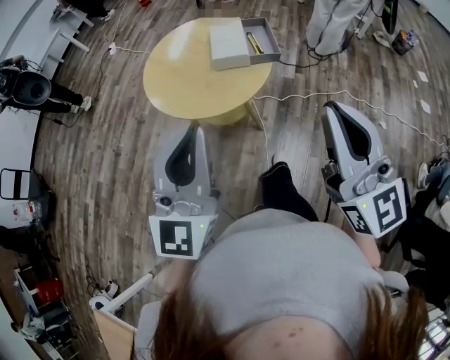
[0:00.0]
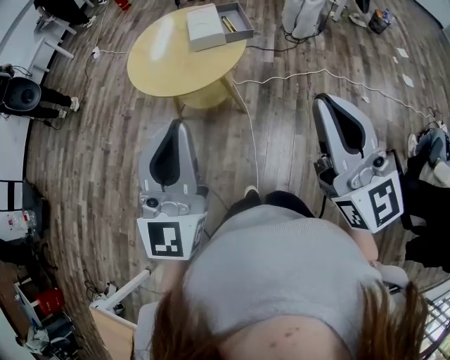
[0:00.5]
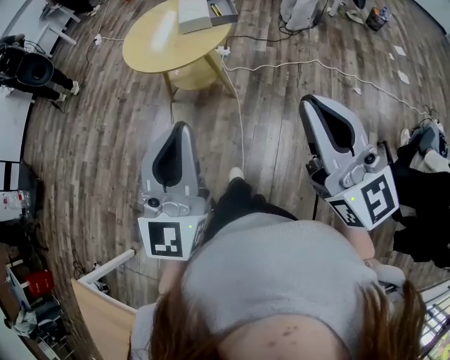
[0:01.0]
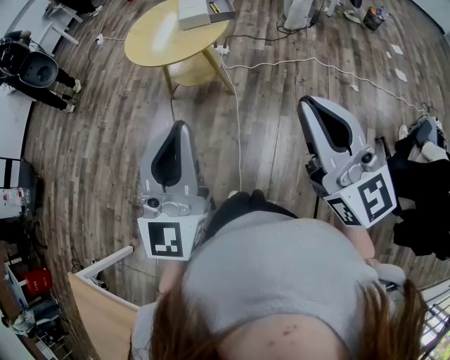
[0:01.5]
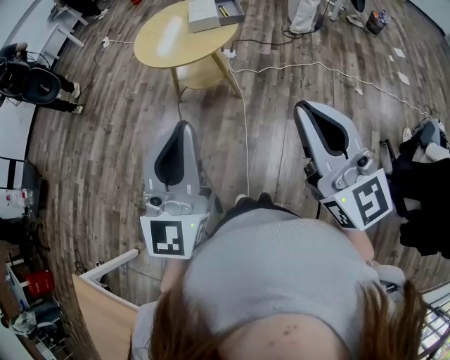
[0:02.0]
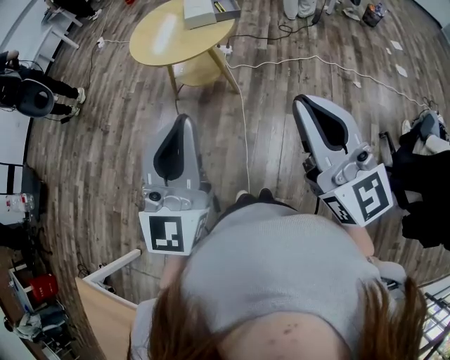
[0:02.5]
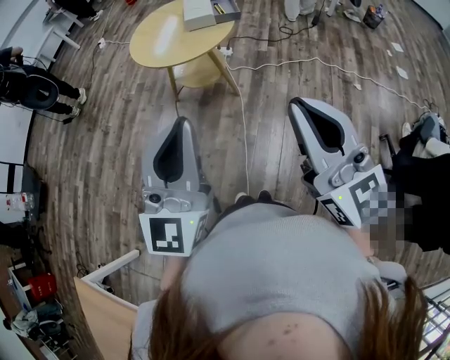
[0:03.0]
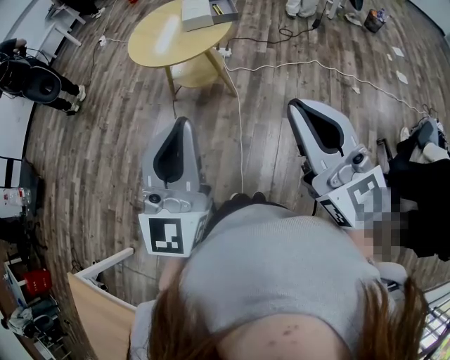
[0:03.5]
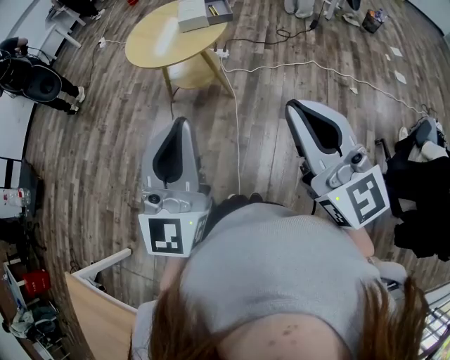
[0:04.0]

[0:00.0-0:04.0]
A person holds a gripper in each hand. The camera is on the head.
0:00.0 to 0:02.0: The two grippers go about 30 cm backward.
0:02.0 to 0:04.0: The grippers stay close to where they were, moving slightly.

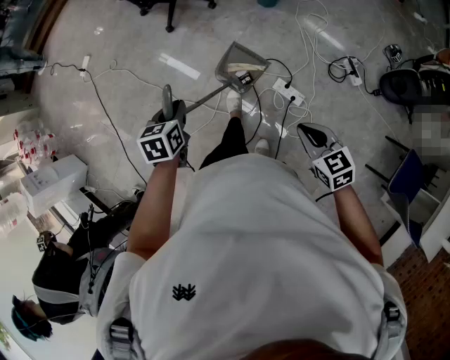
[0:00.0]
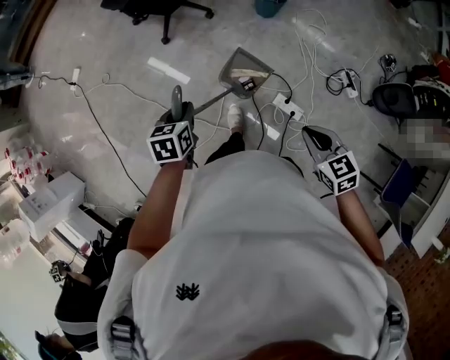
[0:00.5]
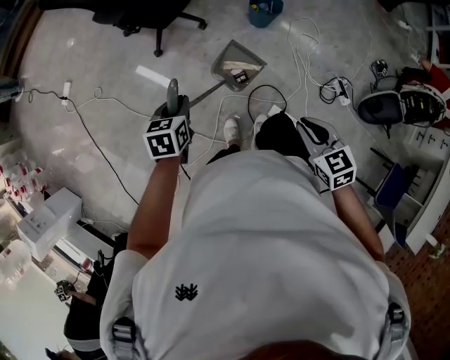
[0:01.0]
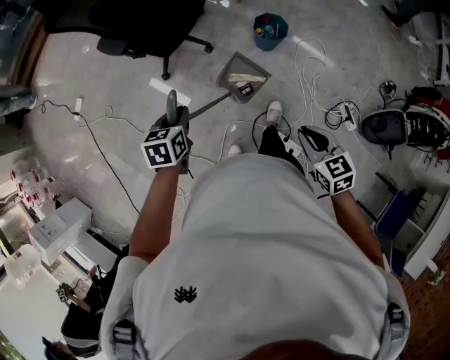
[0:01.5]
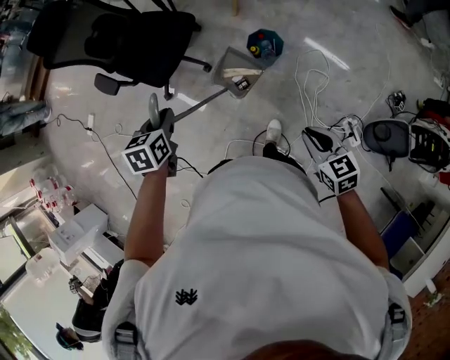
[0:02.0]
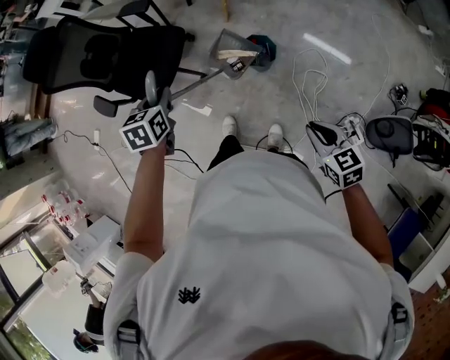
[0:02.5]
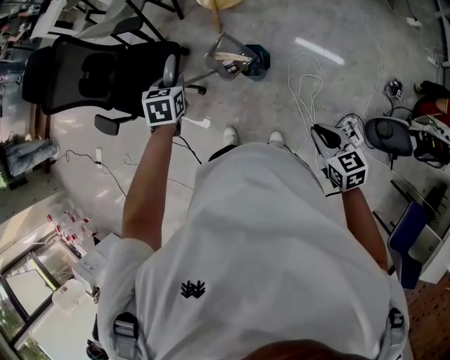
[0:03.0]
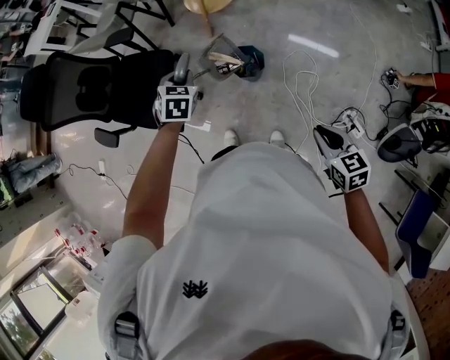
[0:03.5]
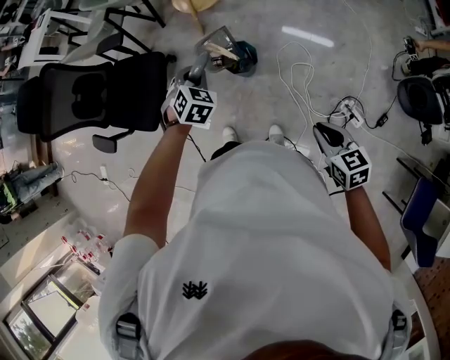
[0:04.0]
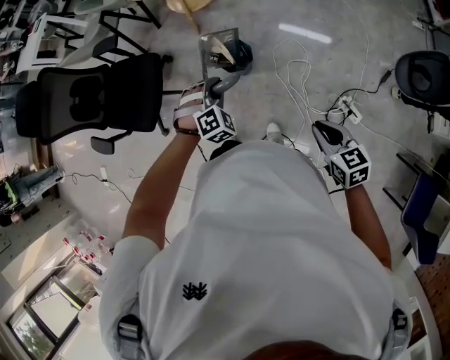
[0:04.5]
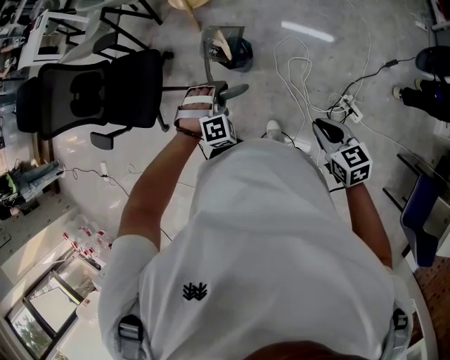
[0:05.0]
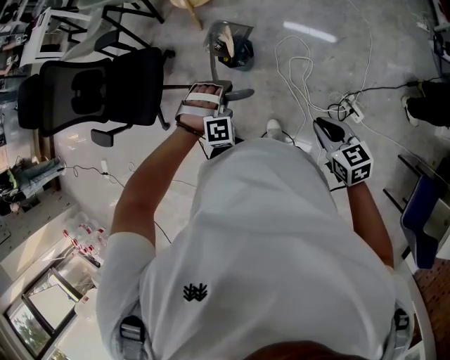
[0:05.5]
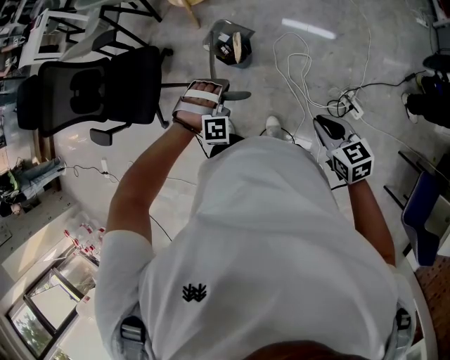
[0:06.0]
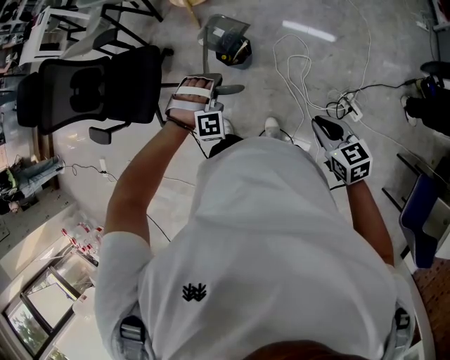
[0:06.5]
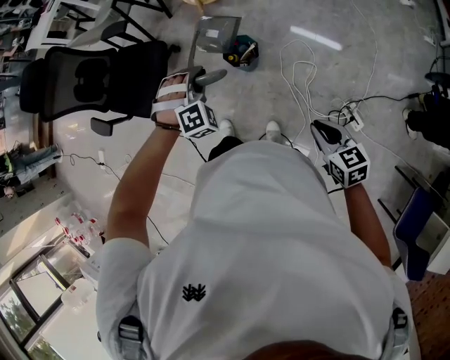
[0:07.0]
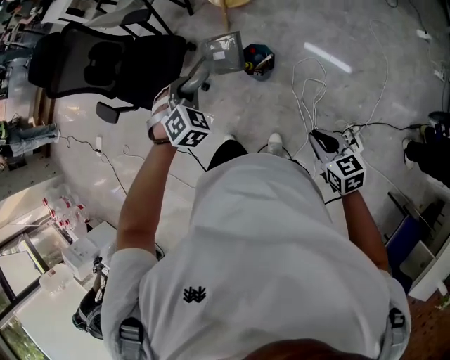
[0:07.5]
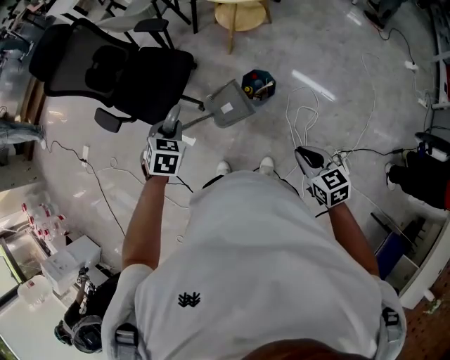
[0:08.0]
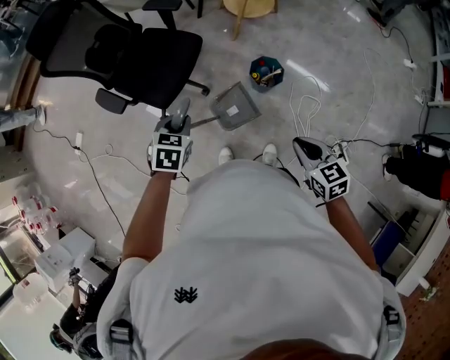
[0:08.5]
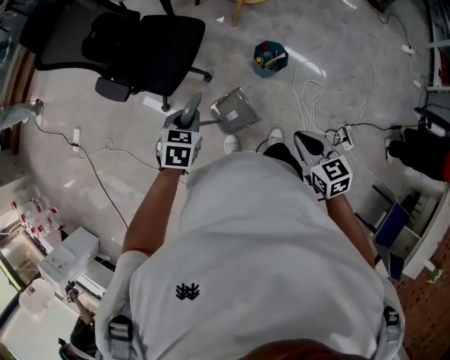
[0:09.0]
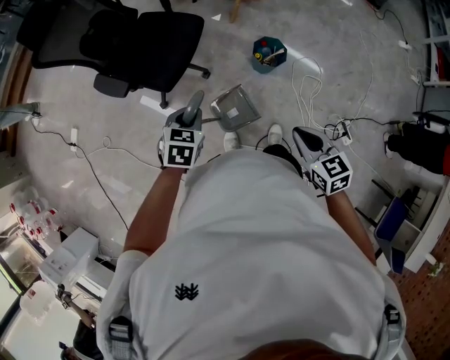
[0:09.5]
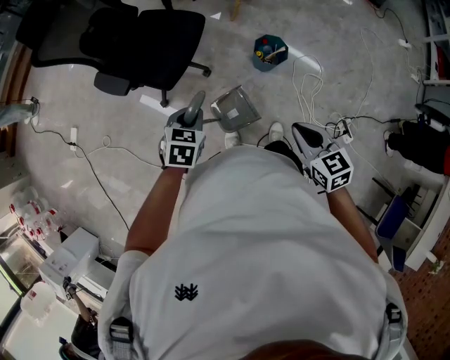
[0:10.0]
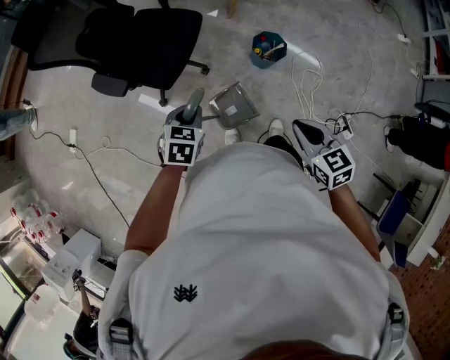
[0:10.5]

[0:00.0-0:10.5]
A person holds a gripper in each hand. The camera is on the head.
0:00.0 to 0:02.0: The two grippers travel together, forward, roughly 50 cm.
0:02.0 to 0:04.0: The right gripper moves to the right, roughly 10 cm, and swivels about 20 degrees; the left gripper goes some 35 cm to the right and forward, and twists roughly 60 degrees clockwise, seen from behind.
0:04.0 to 0:06.5: The left gripper travels backward and to the right by roughly 15 cm, and rolls clockwise, seen from behind, by about 60 degrees.
0:06.5 to 0:08.5: The left gripper shifts about 35 cm to the left, and twists approximately 100 degrees counterclockwise, seen from behind. Meanwhile the right gripper heads to the left and forward, covering about 25 cm.
0:08.5 to 0:10.5: The right gripper travels to the left by some 10 cm; the left gripper ends up about 10 cm from where it was.

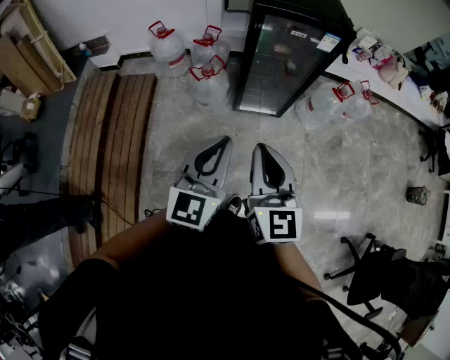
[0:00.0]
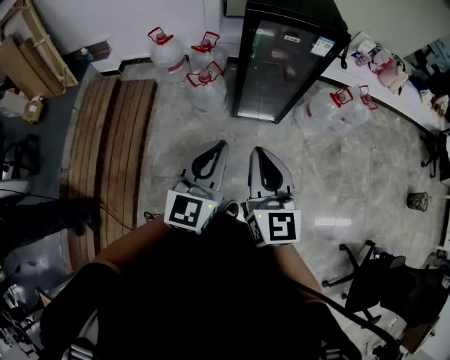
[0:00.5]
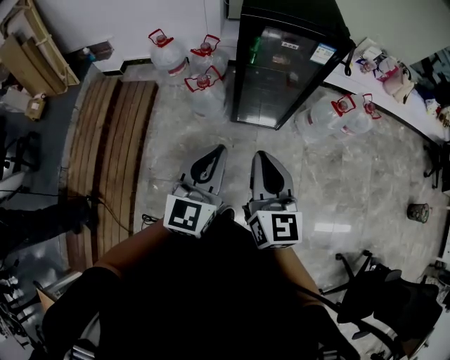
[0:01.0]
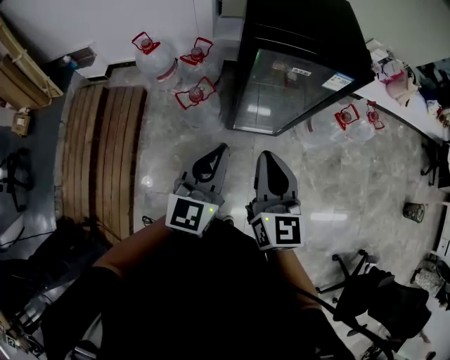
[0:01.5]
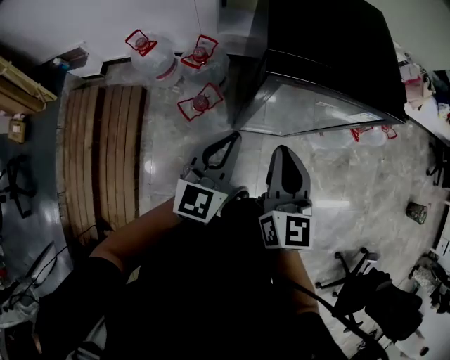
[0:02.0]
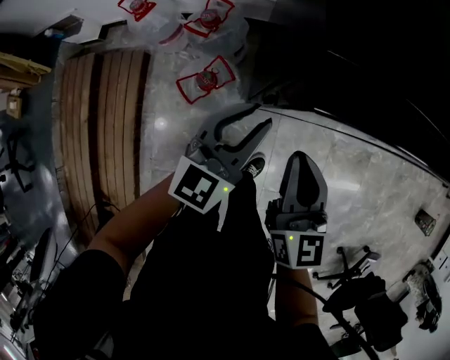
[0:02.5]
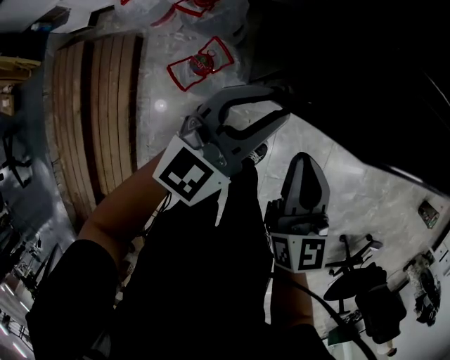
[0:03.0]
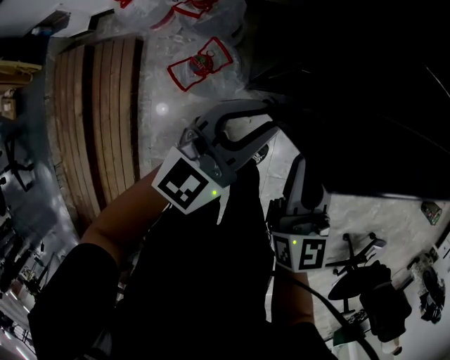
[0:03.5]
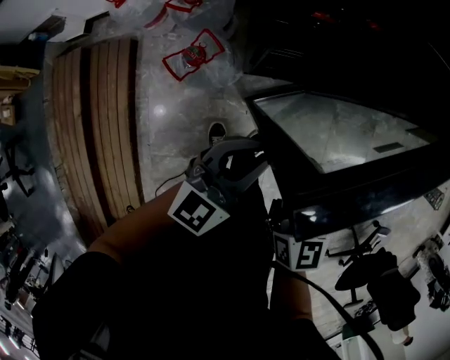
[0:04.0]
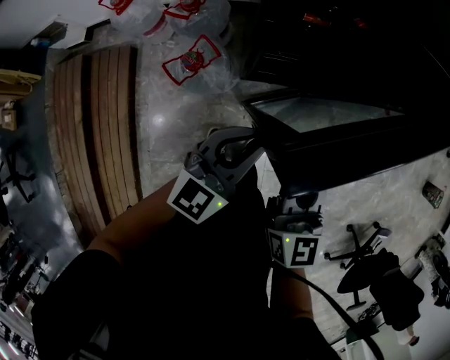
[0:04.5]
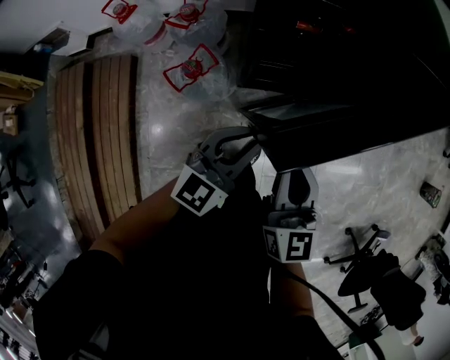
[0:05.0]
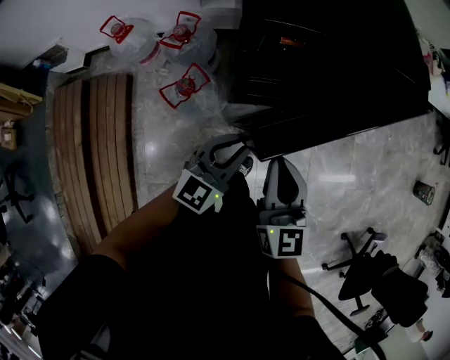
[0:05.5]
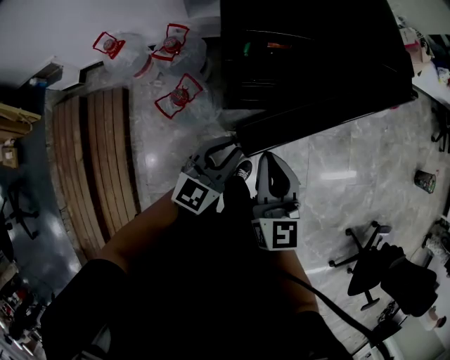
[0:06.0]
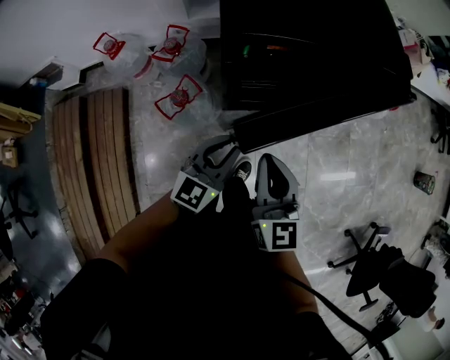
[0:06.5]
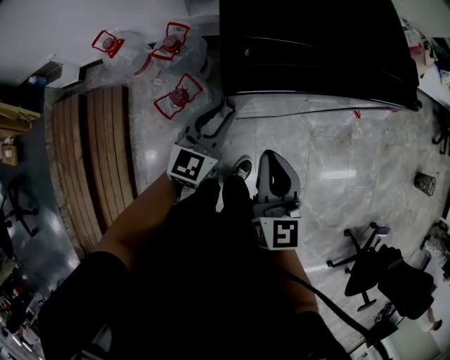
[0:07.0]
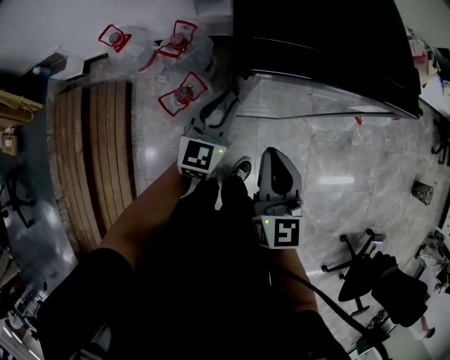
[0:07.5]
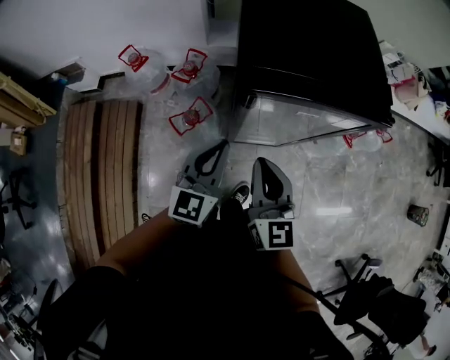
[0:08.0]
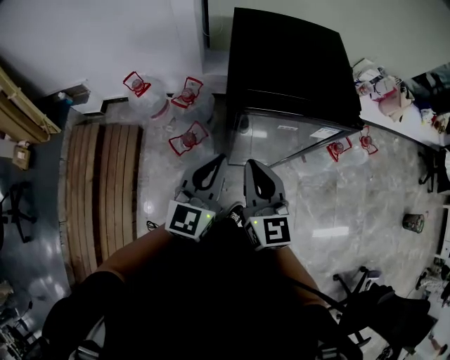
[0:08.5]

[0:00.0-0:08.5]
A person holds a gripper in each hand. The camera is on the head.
0:00.0 to 0:02.0: Both grippers travel together forward, some 40 cm.
0:02.0 to 0:04.0: The two grippers go roughly 15 cm downward and to the right. The left gripper rotates about 20 degrees.
0:04.0 to 0:06.5: The right gripper heads upward, covering some 5 cm.
0:06.5 to 0:08.5: The left gripper shifts approximately 20 cm upward, and turns by some 20 degrees. The right gripper goes some 10 cm upward.

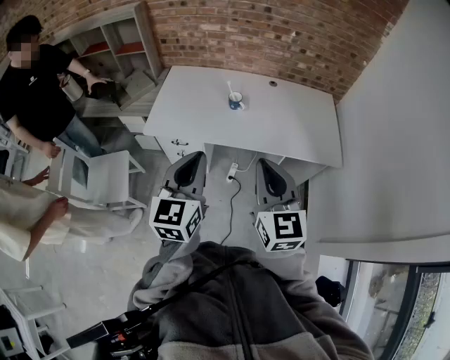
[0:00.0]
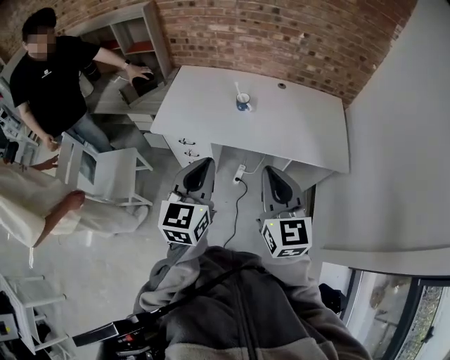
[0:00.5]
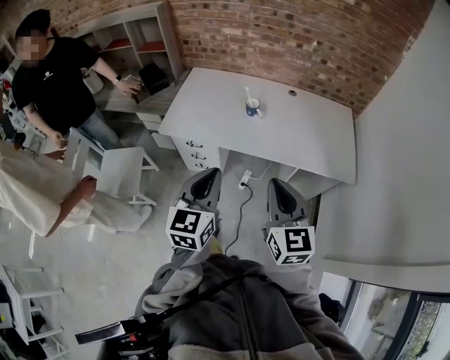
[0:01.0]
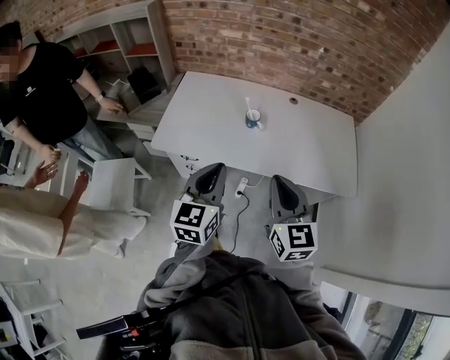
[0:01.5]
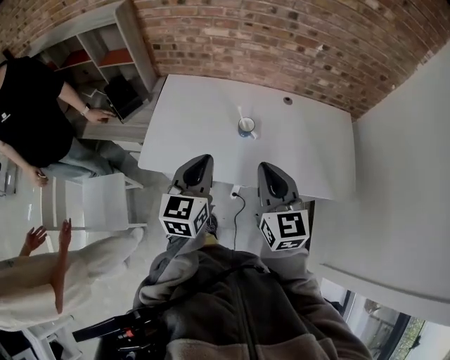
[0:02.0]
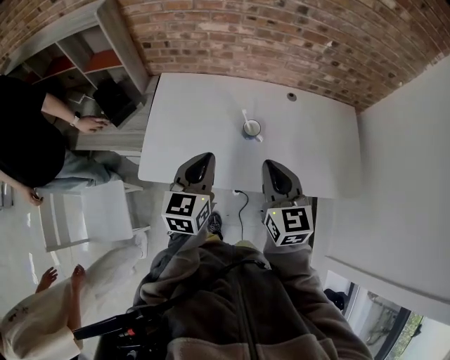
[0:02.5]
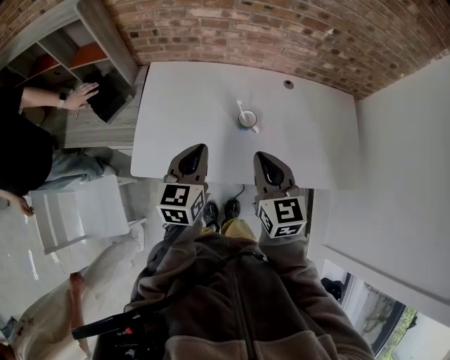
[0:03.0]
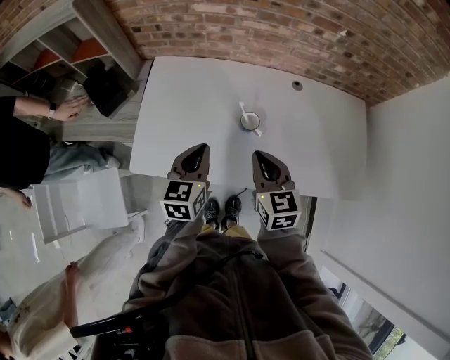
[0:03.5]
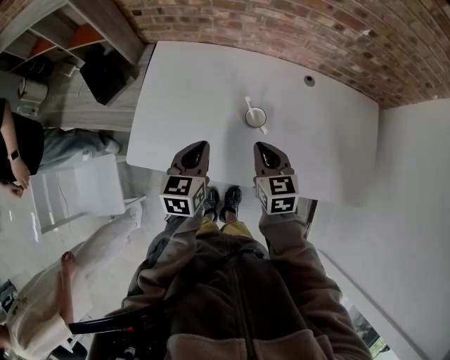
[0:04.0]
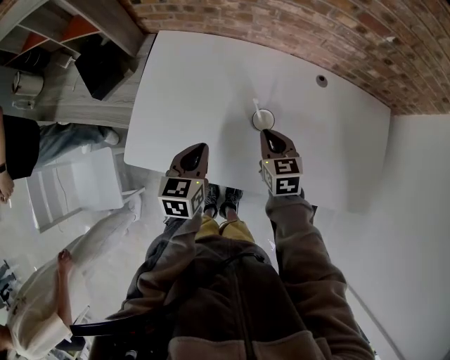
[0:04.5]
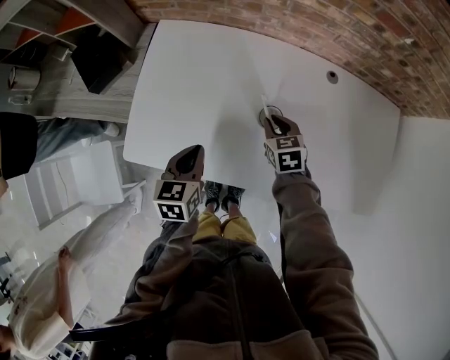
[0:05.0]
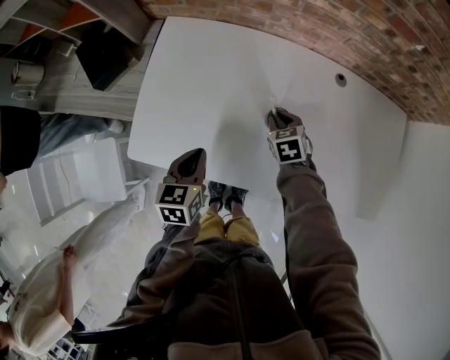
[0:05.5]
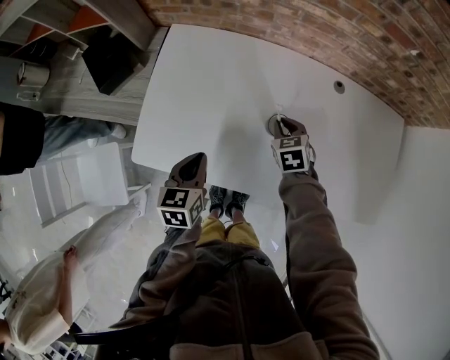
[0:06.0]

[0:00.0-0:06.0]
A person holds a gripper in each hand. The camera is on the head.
0:00.0 to 0:02.0: The two grippers go roughly 25 cm forward.
0:02.0 to 0:04.0: Both grippers travel together downward and forward, some 25 cm. The left gripper swivels about 20 degrees, while the right gripper swivels some 30 degrees.
0:04.0 to 0:06.0: The left gripper heads downward and to the left, covering some 10 cm. Meanwhile the right gripper moves downward and forward, roughly 20 cm, and rotates some 20 degrees.
